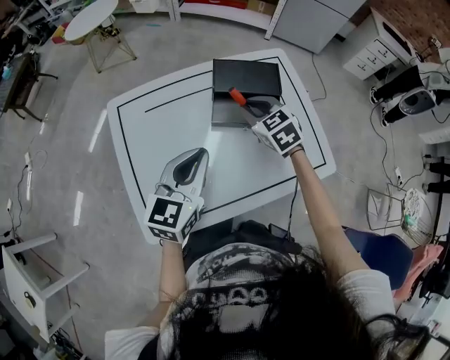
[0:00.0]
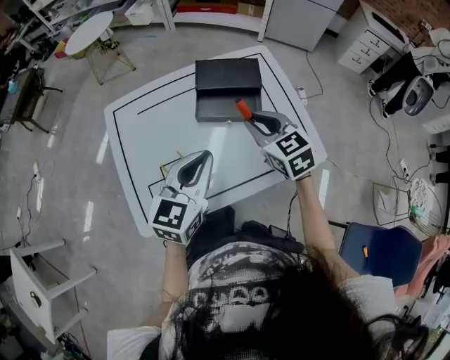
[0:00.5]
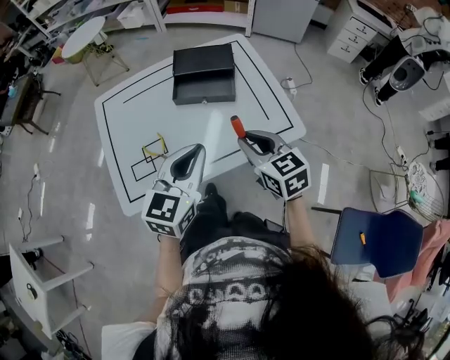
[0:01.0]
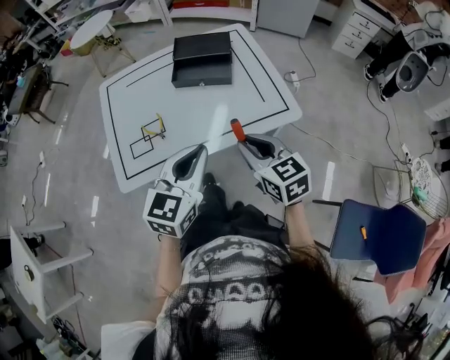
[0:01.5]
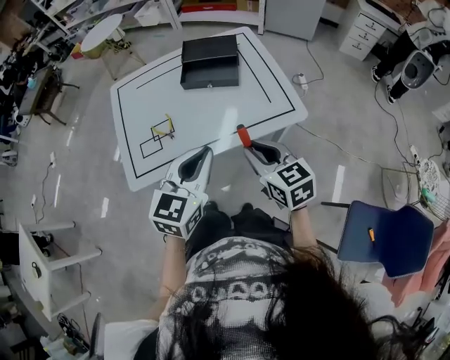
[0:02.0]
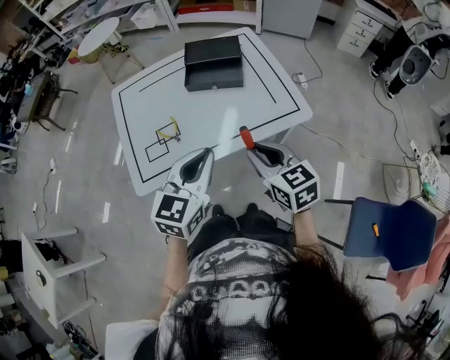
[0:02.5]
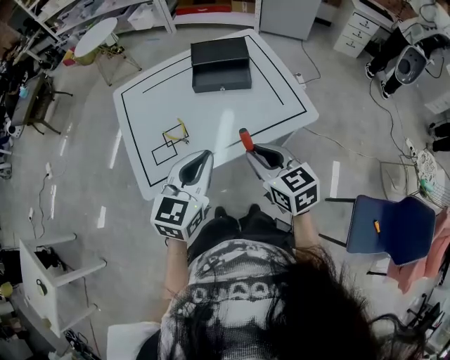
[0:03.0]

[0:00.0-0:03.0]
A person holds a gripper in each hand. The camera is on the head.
0:00.0 to 0:01.5: Both grippers travel together backward and to the right, roughly 35 cm. The right gripper changes its angle by some 30 degrees.
0:01.5 to 0:03.0: The two grippers go approximately 10 cm to the left.

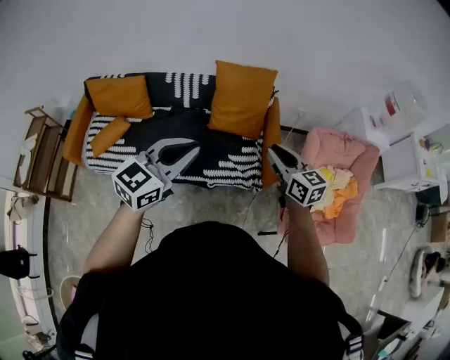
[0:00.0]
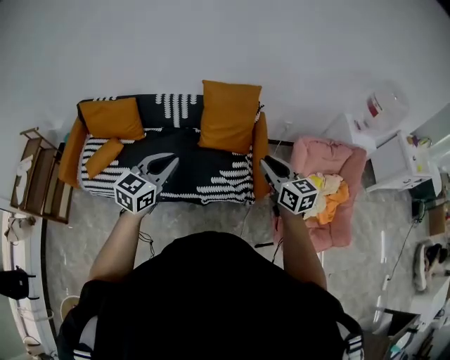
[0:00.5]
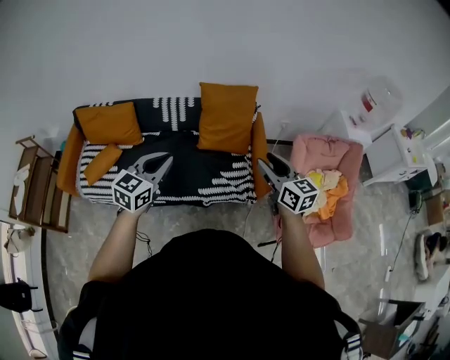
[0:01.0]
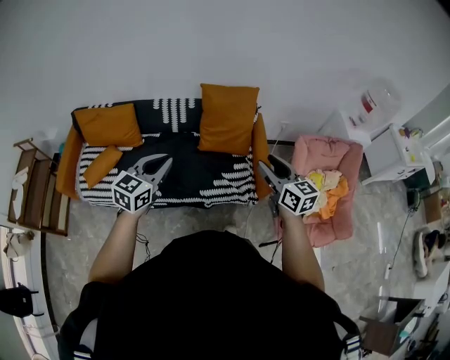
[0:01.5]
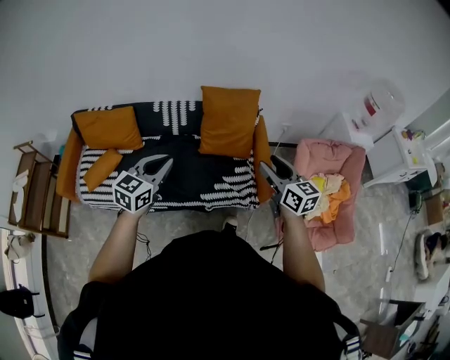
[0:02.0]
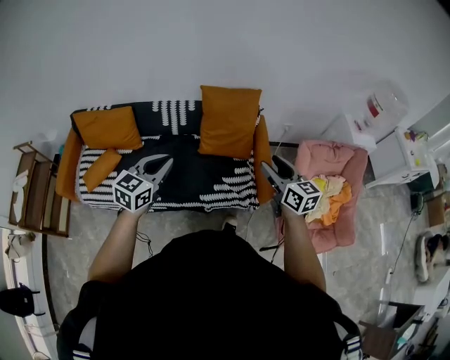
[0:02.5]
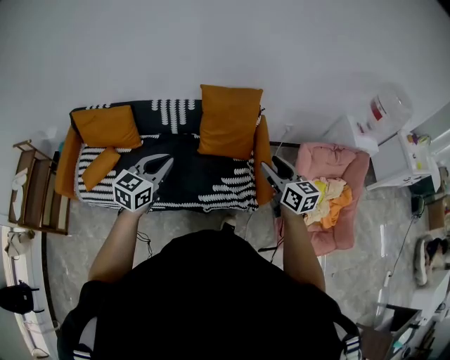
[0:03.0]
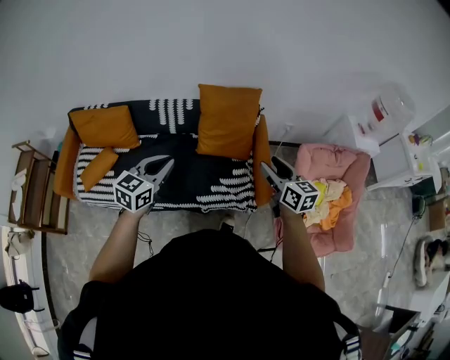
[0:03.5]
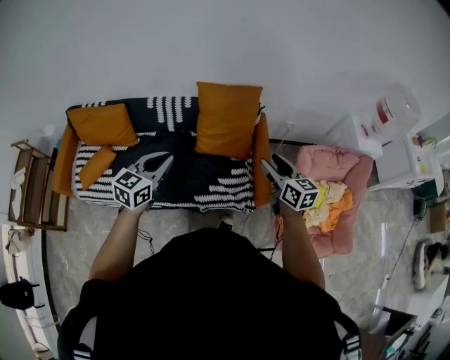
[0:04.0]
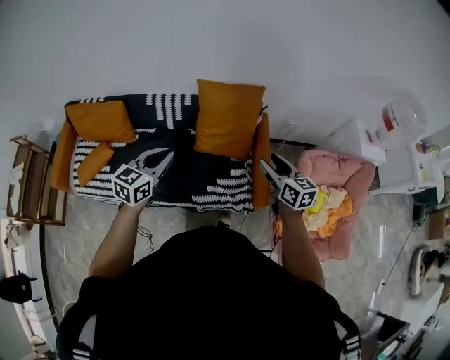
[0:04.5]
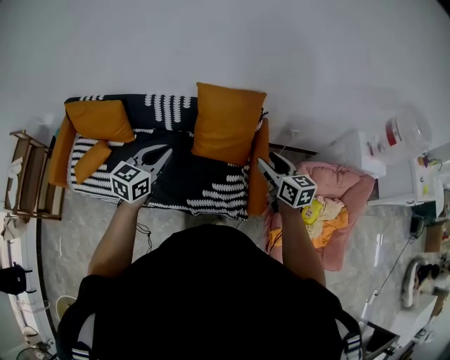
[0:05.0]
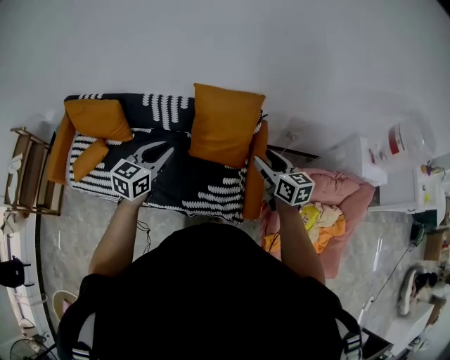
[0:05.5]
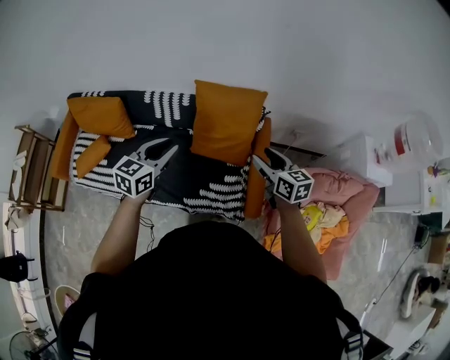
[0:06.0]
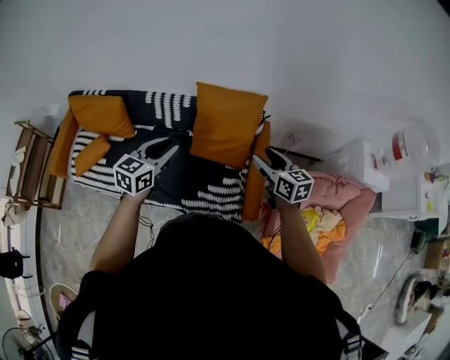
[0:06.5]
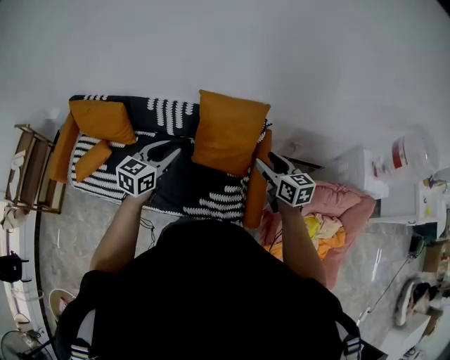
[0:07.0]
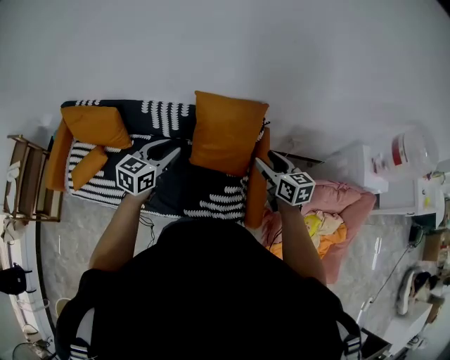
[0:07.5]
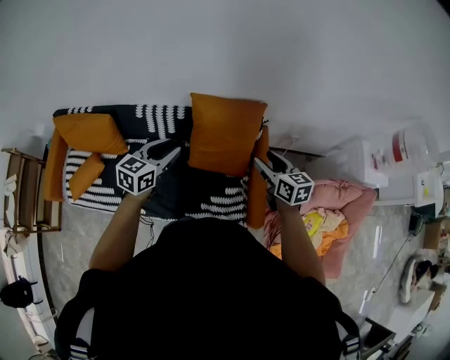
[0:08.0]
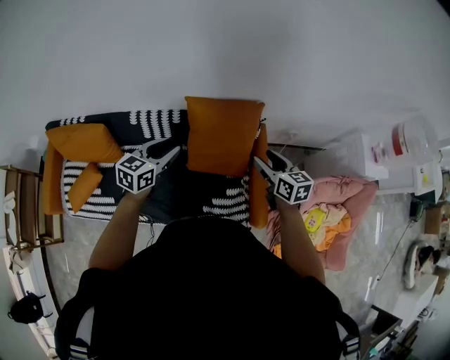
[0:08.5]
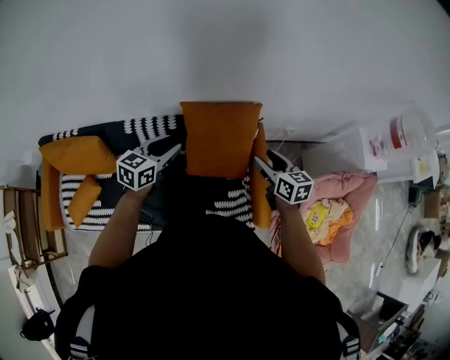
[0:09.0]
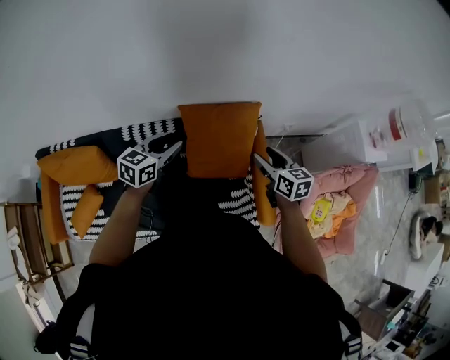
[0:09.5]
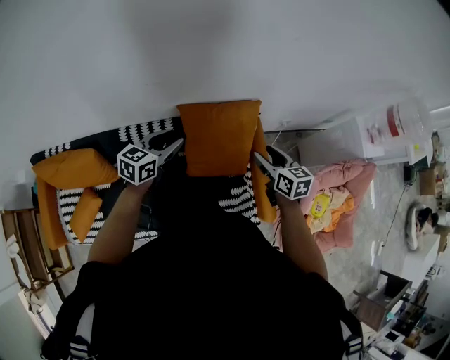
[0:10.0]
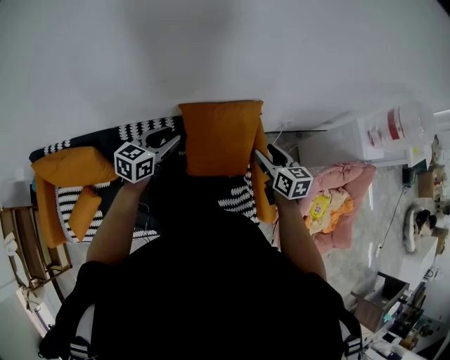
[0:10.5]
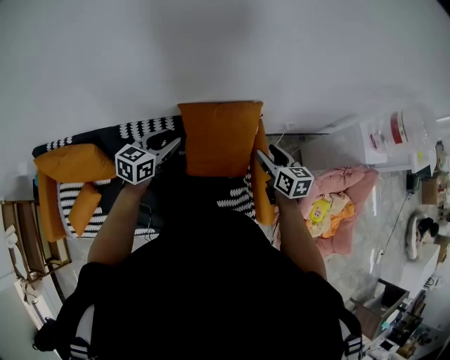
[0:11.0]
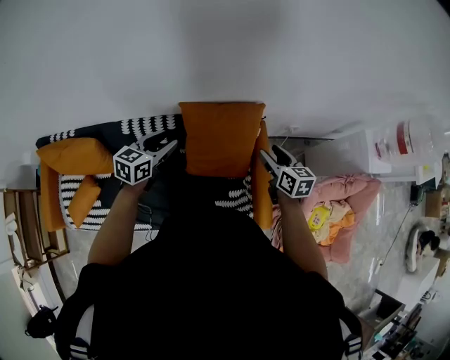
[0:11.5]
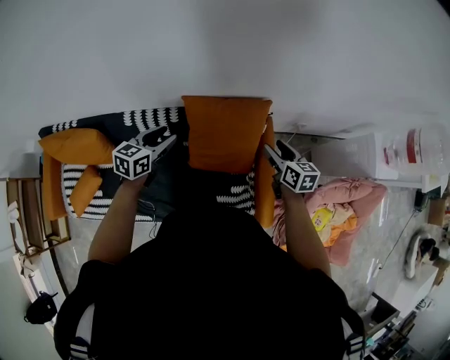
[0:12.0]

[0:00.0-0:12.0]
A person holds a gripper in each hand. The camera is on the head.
0:00.0 to 0:02.0: The left gripper travels to the left, downward and forward by roughly 15 cm. The right gripper opens its fingers.
0:02.0 to 0:04.0: The right gripper is displaced forward, to the right and downward by about 15 cm. The left gripper goes some 10 cm forward.
0:04.0 to 0:06.0: The right gripper heads forward, covering roughly 15 cm, while the left gripper shifts approximately 15 cm forward and to the right.
0:06.0 to 0:08.0: The two grippers go some 10 cm forward.
0:08.0 to 0:10.0: The left gripper travels forward by approximately 15 cm. The right gripper moves forward and to the left, roughly 10 cm.
0:10.0 to 0:12.0: The right gripper moves forward, to the right and downward, approximately 10 cm.

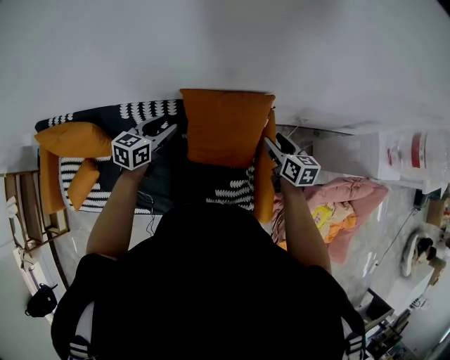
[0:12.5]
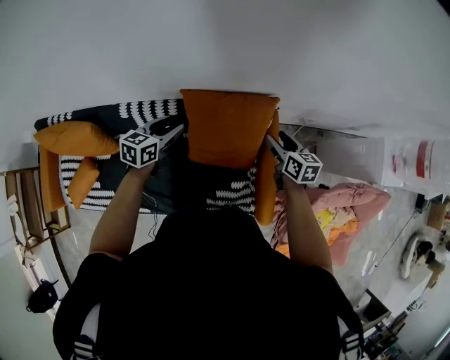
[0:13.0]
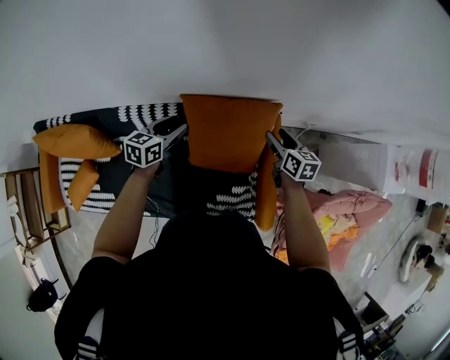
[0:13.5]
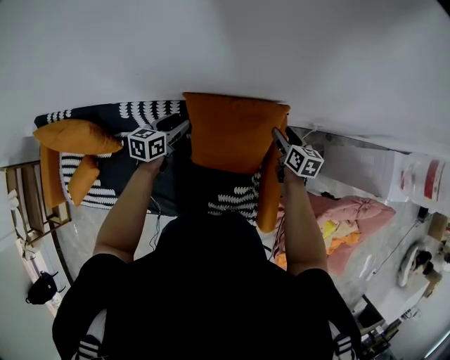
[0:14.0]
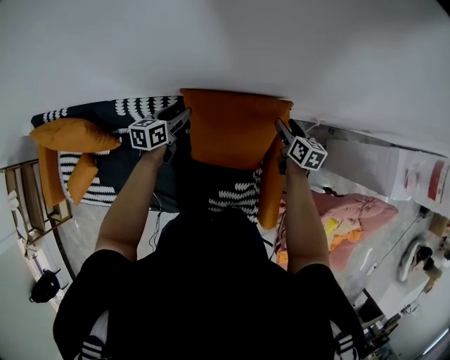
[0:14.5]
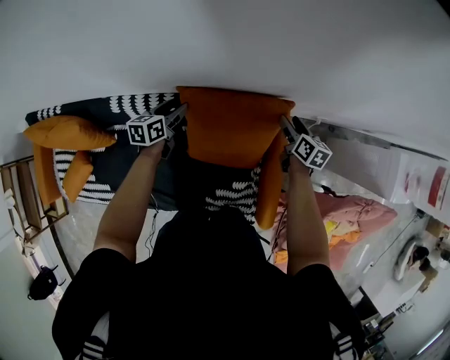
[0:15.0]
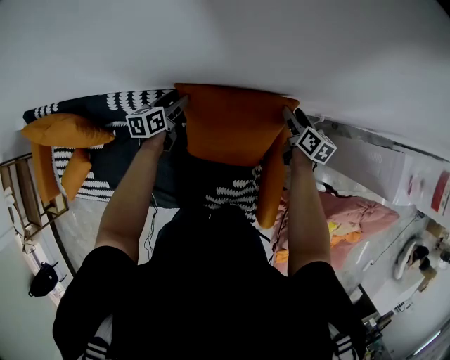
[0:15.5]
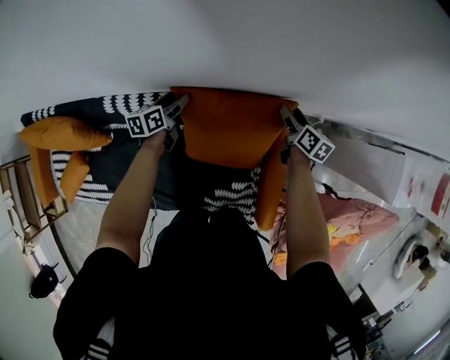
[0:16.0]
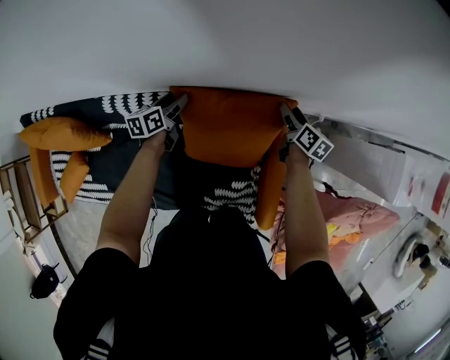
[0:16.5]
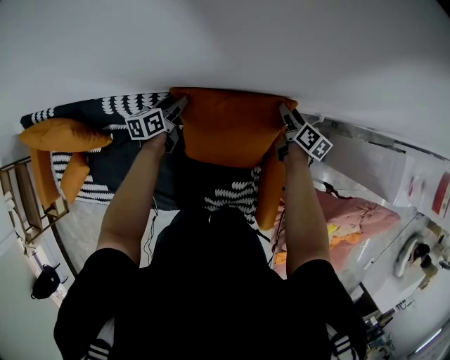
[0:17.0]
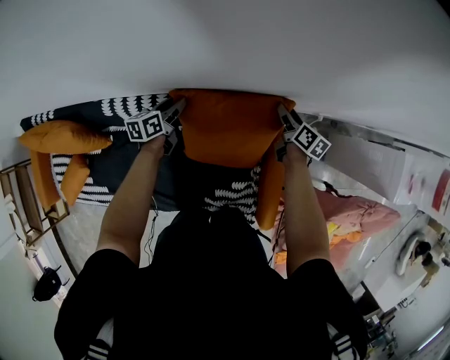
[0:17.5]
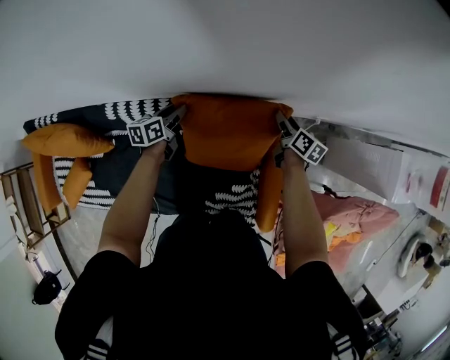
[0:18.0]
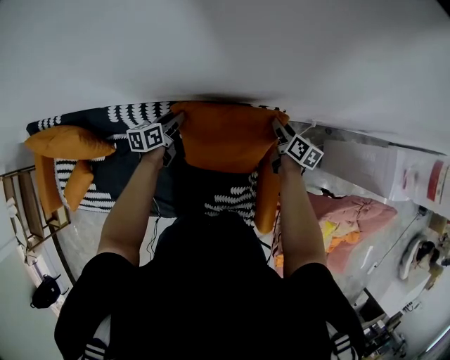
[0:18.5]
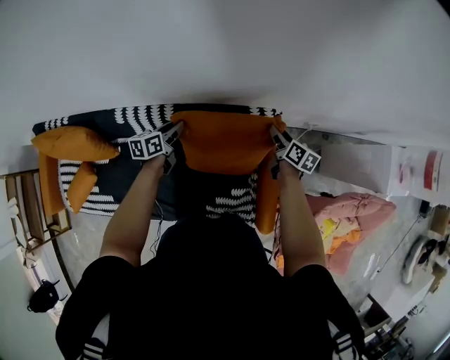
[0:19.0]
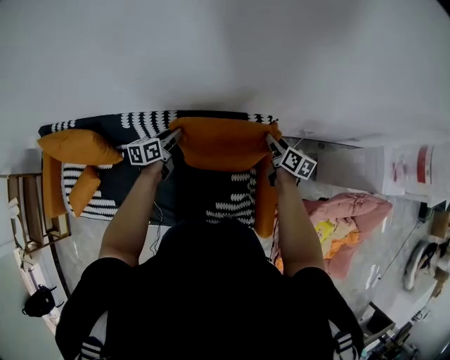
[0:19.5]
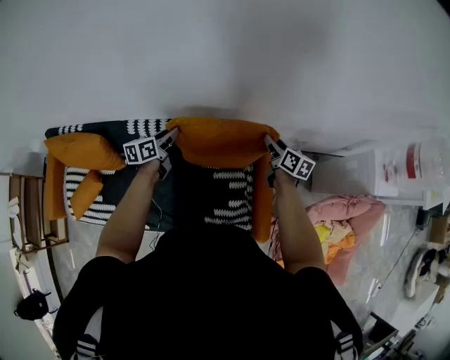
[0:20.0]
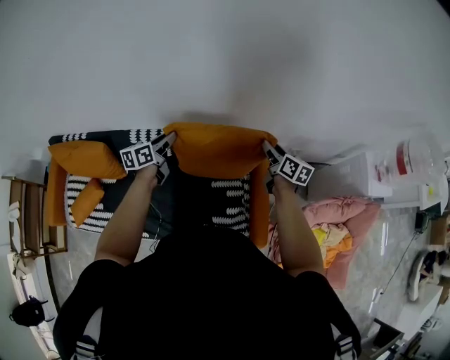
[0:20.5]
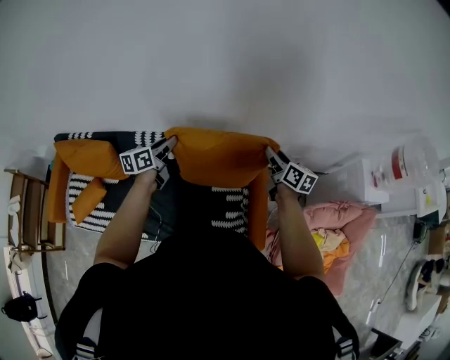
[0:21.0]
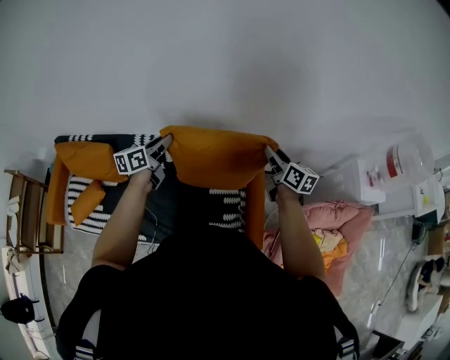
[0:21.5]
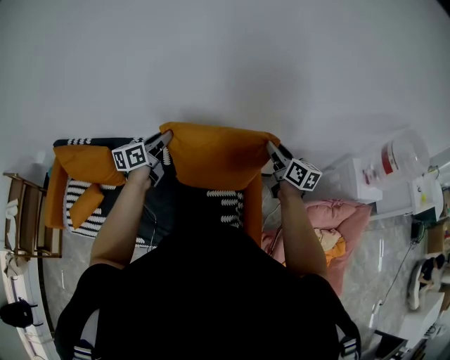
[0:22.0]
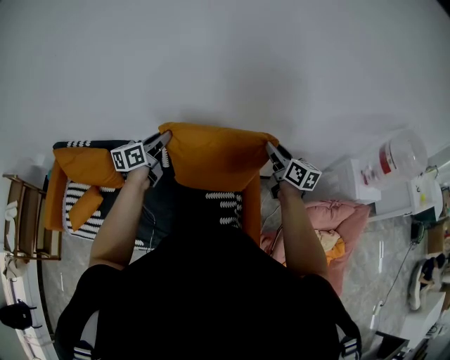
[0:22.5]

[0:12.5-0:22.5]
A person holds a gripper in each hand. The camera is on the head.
0:12.5 to 0:14.5: The left gripper goes roughly 15 cm downward and forward, while the right gripper travels forward and downward by approximately 20 cm.
0:14.5 to 0:16.5: The left gripper is displaced downward and forward by about 10 cm. Meanwhile the right gripper shifts roughly 5 cm forward.
0:16.5 to 0:18.5: The right gripper closes up. The left gripper moves roughly 5 cm, and closes up.
0:18.5 to 0:20.5: Both grippers travel together upward and backward, about 25 cm.
0:20.5 to 0:22.5: The grippers both shift upward and backward by approximately 15 cm.

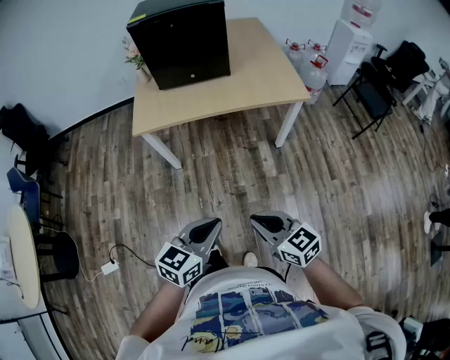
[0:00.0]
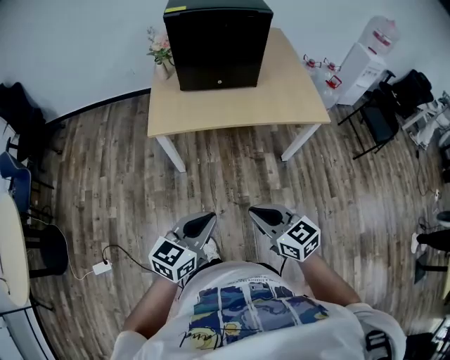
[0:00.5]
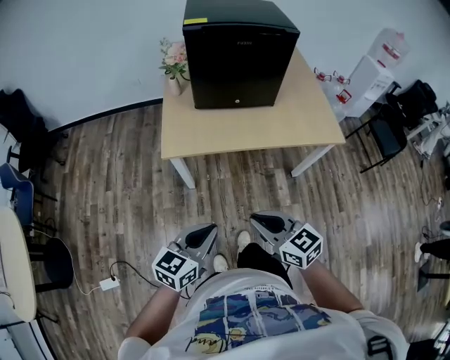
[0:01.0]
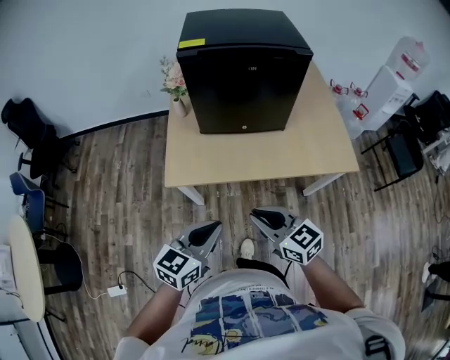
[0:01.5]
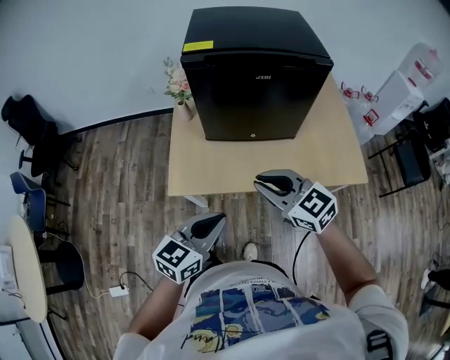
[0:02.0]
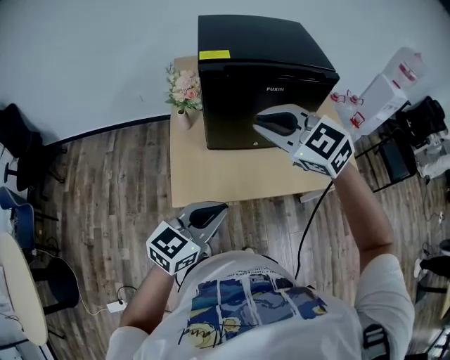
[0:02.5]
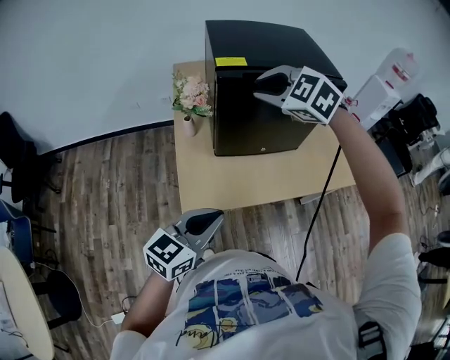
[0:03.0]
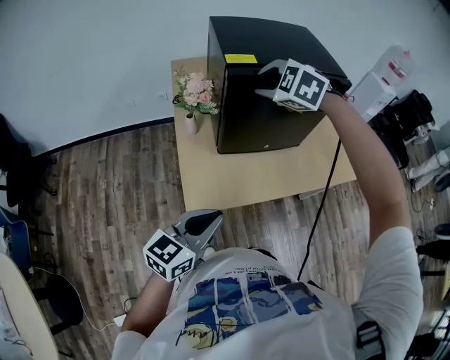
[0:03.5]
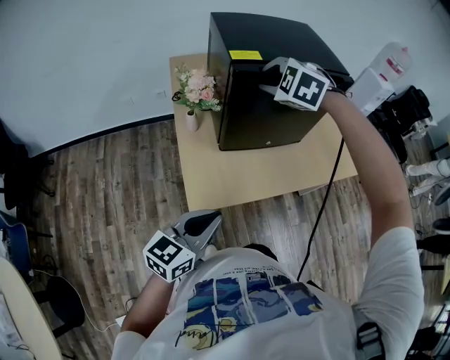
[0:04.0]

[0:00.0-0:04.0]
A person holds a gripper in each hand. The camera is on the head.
0:00.0 to 0:02.0: The pair of grippers is taken forward, about 50 cm.
0:02.0 to 0:04.0: The left gripper changes place by about 20 cm. Meanwhile the right gripper shifts by roughly 30 cm, and swivels about 60 degrees.
